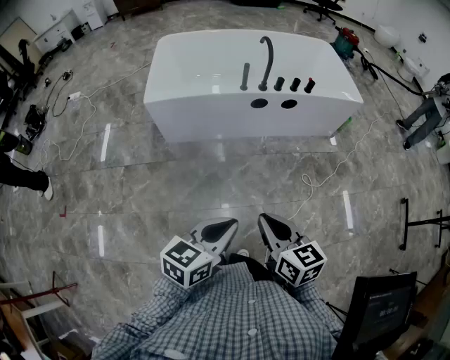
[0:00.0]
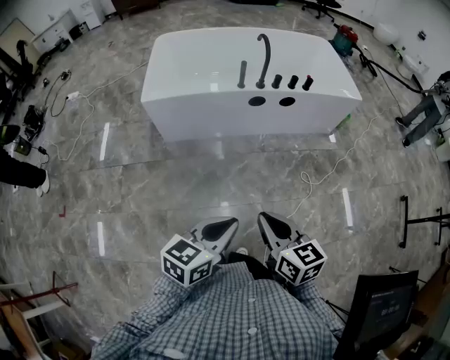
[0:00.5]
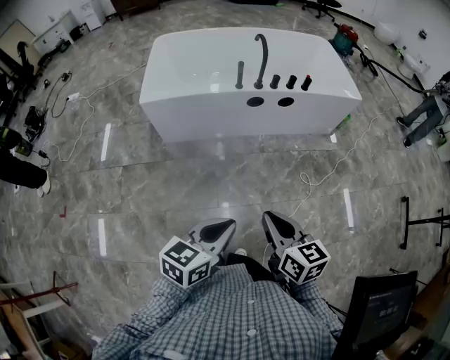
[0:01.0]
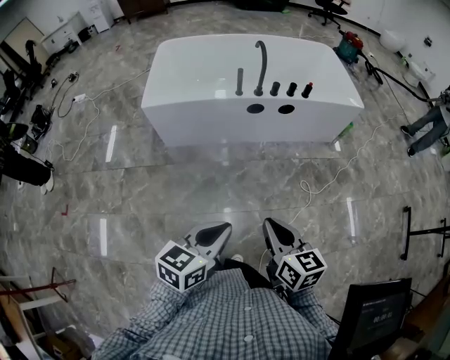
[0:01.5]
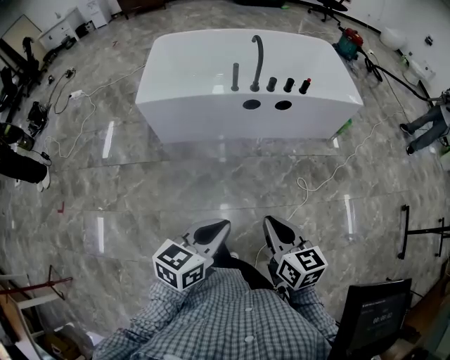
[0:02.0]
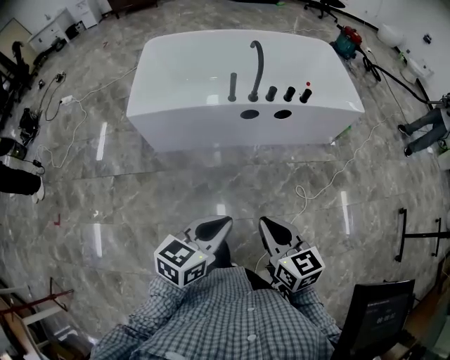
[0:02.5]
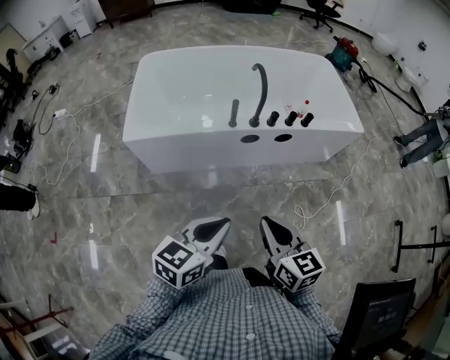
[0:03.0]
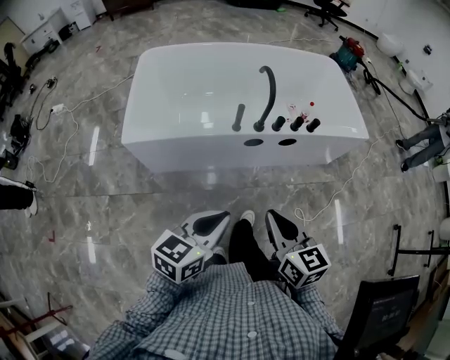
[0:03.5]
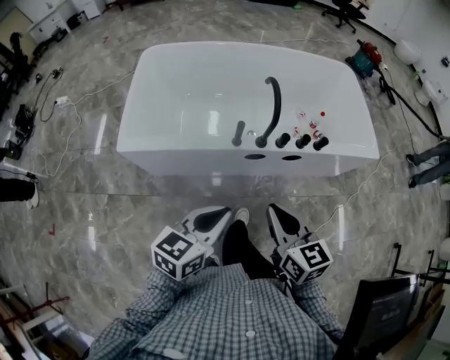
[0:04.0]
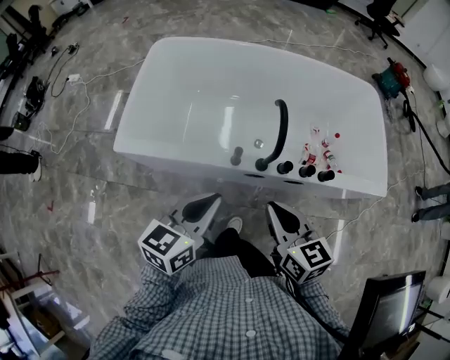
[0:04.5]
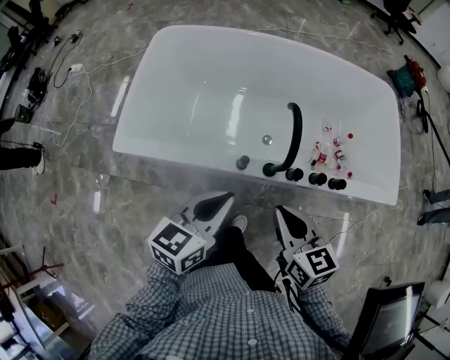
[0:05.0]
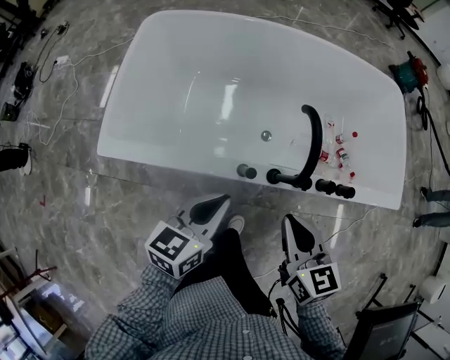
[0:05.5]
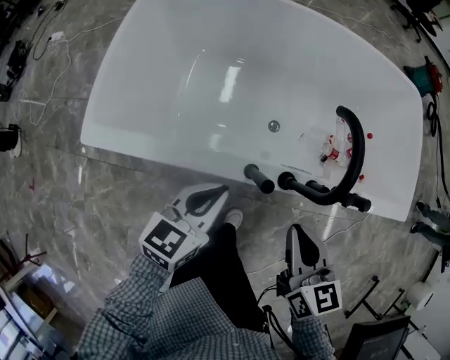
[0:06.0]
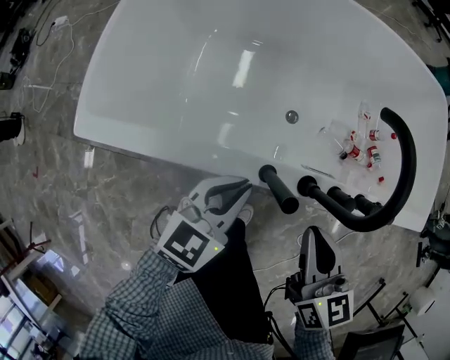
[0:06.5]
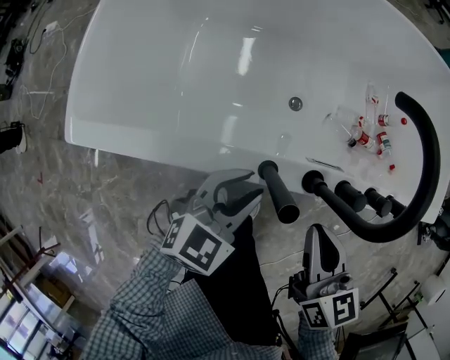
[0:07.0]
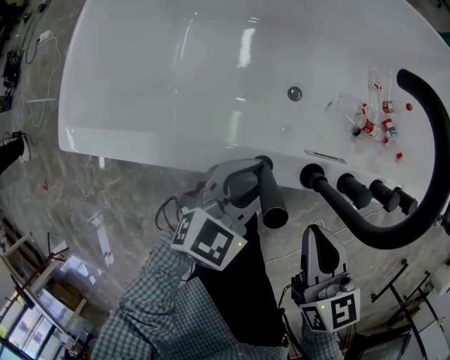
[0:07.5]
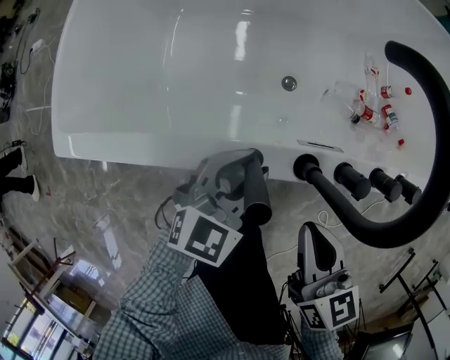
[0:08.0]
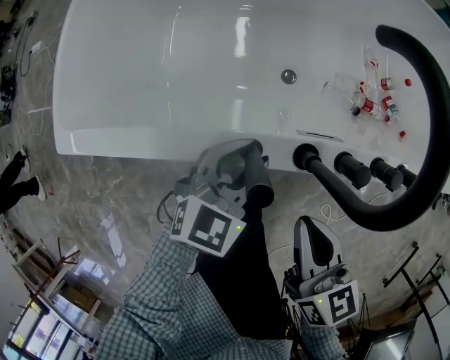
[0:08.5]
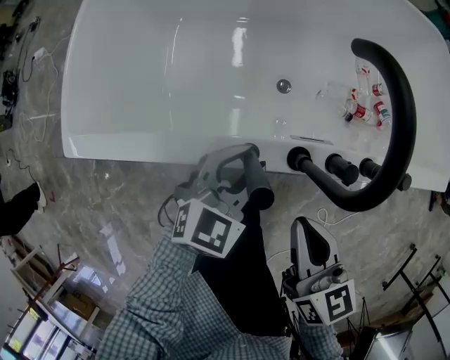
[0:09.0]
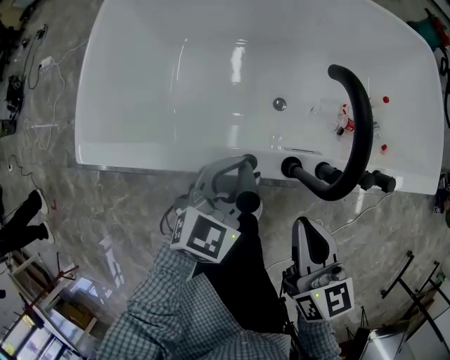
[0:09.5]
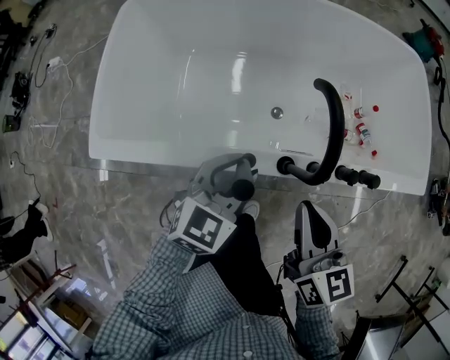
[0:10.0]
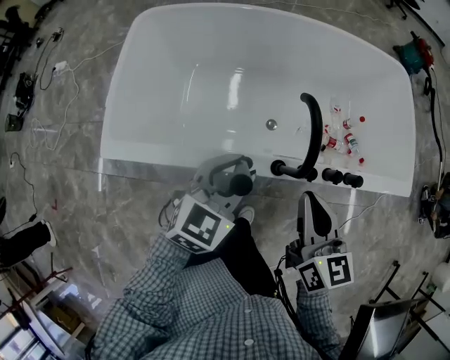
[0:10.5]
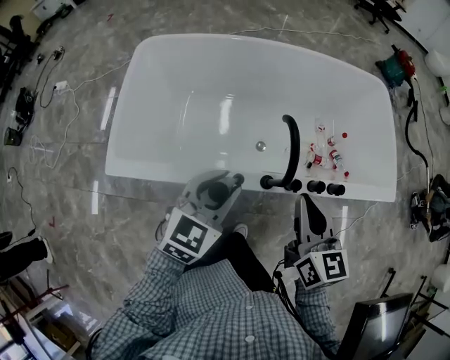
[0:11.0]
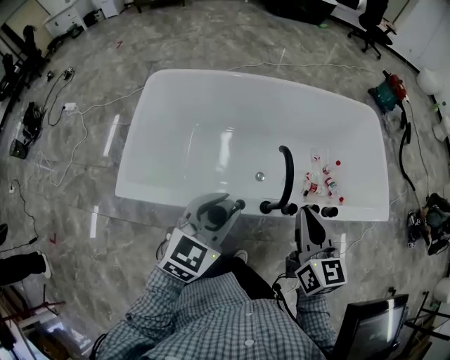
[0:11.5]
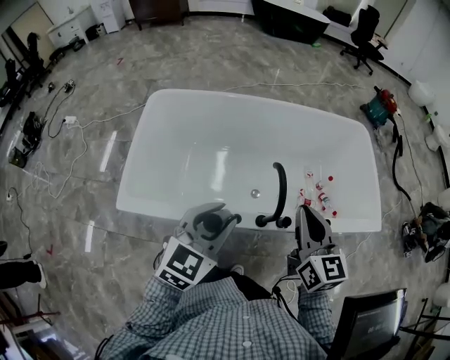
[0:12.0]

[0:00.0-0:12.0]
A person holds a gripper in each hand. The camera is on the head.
0:00.0 to 0:02.0: The left gripper moves to the right, approximately 5 cm; the right gripper is displaced to the right by roughly 10 cm.
0:02.0 to 0:04.0: The two grippers travel together, forward, about 50 cm.
0:04.0 to 0:06.0: Both grippers move forward and downward, some 35 cm.
0:06.0 to 0:08.0: The left gripper moves downward and to the right, some 15 cm, rotates some 30 degrees, and opens; the right gripper moves downward, about 15 cm.
0:08.0 to 0:10.0: Both grippers move upward, roughly 15 cm.
0:10.0 to 0:12.0: Both grippers move upward, about 25 cm.

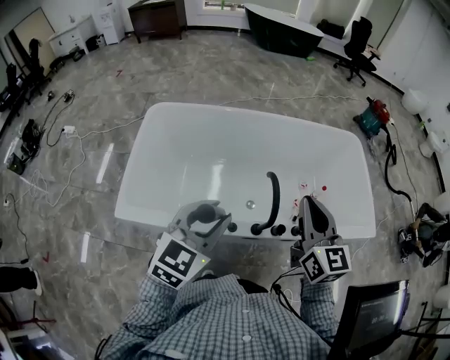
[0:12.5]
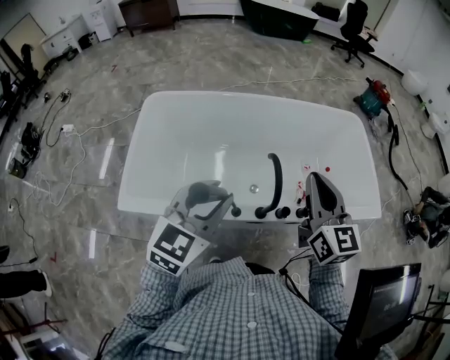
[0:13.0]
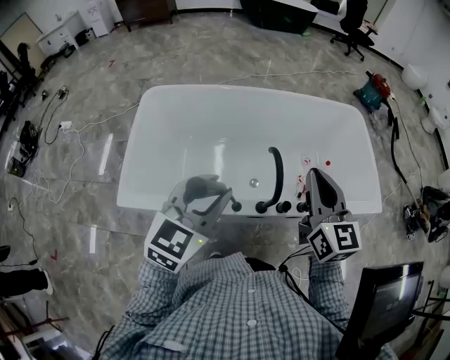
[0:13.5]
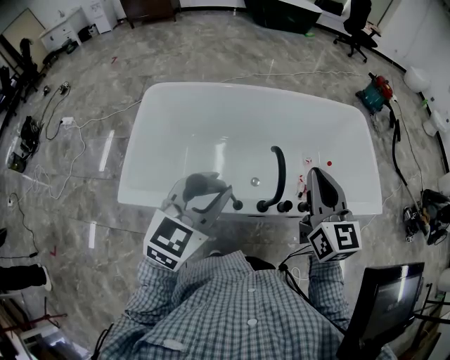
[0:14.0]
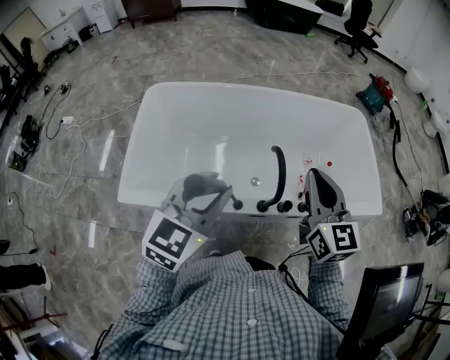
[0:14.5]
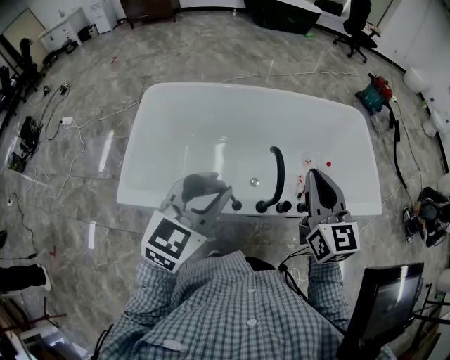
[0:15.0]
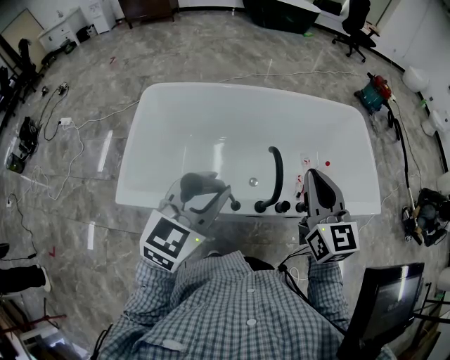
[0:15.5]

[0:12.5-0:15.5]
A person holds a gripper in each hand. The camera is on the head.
0:12.5 to 0:14.0: There are only small adjustments of the grippers.
0:14.0 to 0:15.5: Neither gripper changes place.

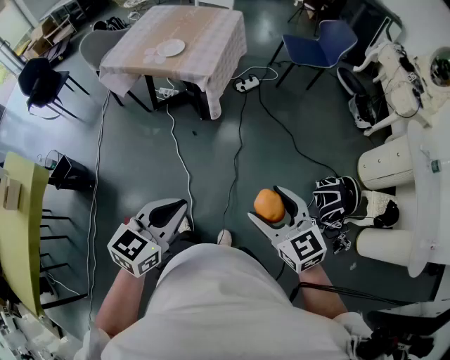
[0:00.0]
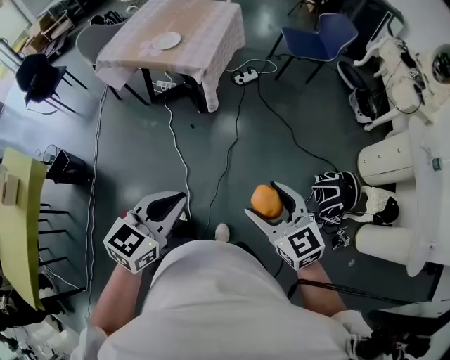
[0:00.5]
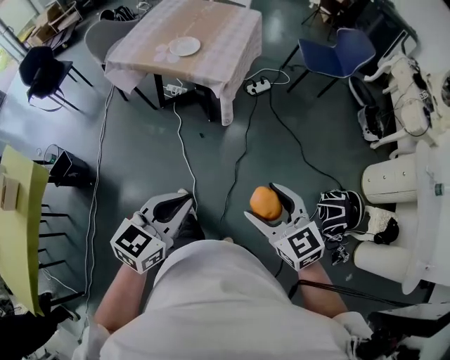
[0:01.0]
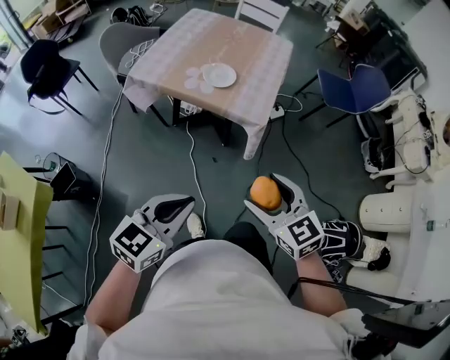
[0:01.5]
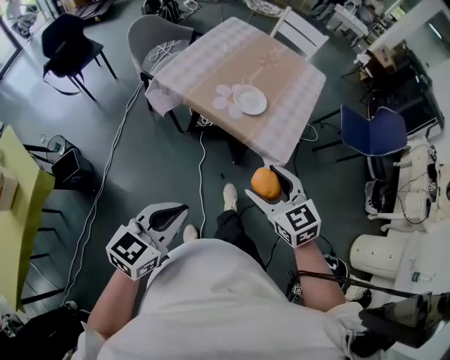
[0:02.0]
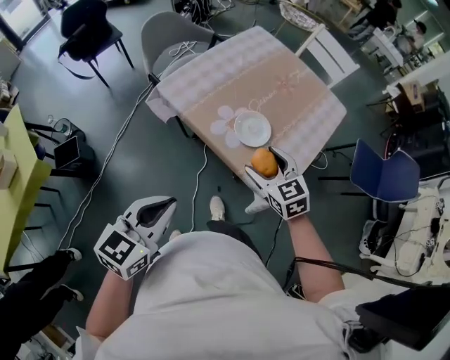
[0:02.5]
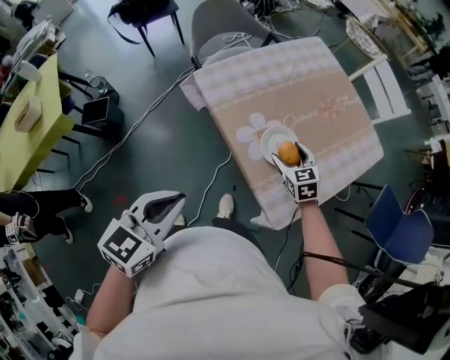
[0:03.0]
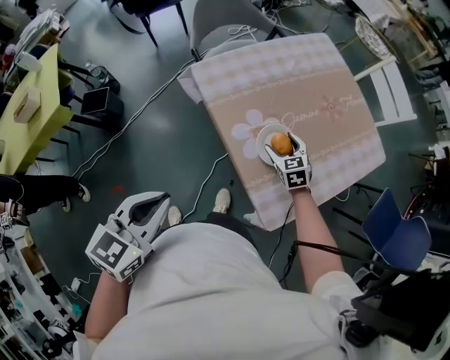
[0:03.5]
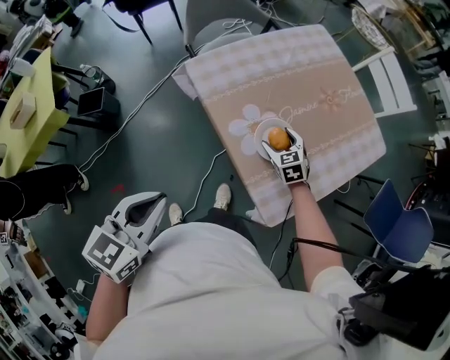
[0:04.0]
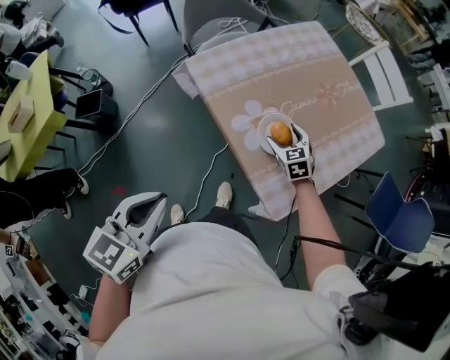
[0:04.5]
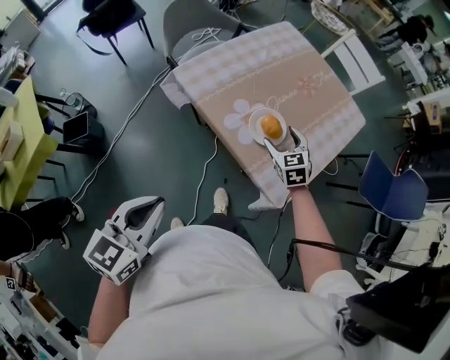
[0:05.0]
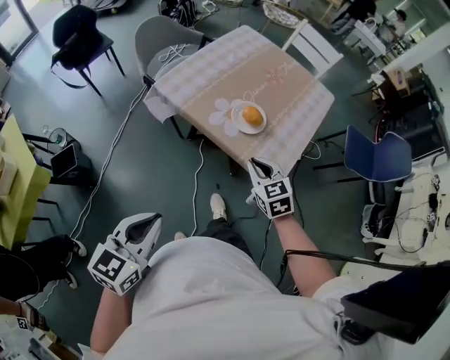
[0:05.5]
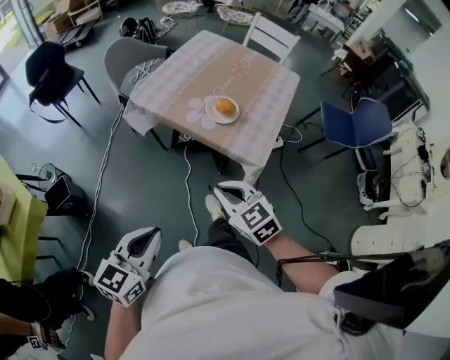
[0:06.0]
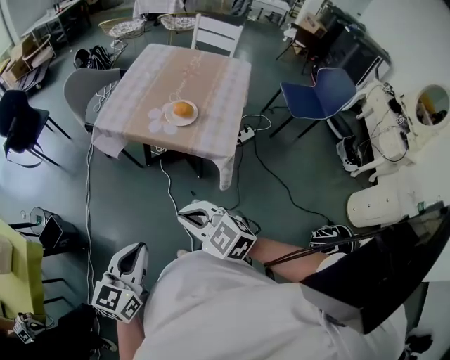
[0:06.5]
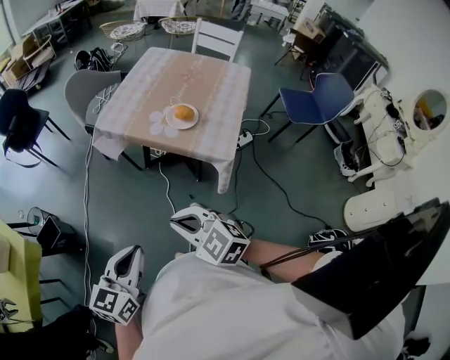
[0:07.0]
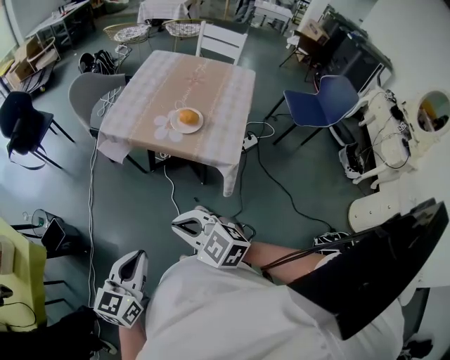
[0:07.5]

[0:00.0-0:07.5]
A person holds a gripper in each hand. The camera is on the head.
0:00.0 to 0:02.0: Both grippers are carried forward and to the left, approximately 50 cm.
0:02.0 to 0:04.0: The left gripper moves some 20 cm, and rotates approximately 40 degrees, while the right gripper changes place by some 50 cm, and changes its angle by some 20 degrees.
0:04.0 to 0:05.5: The right gripper moves backward and upward, roughly 25 cm, swivels roughly 20 degrees, and closes, while the left gripper heads backward and to the left, covering about 15 cm, and turns by about 20 degrees.
0:05.5 to 0:07.5: The right gripper is displaced backward and to the left by roughly 30 cm, and swivels approximately 20 degrees. The left gripper heads backward, covering approximately 10 cm.

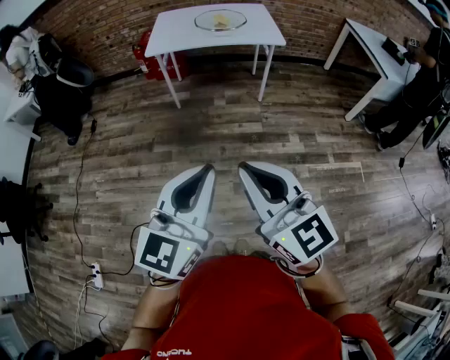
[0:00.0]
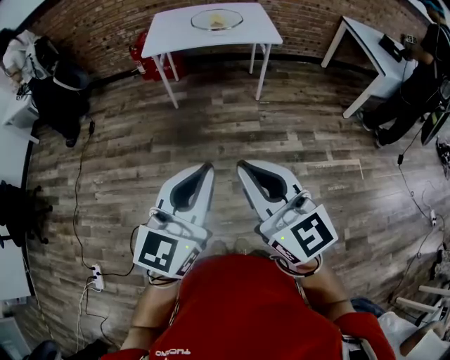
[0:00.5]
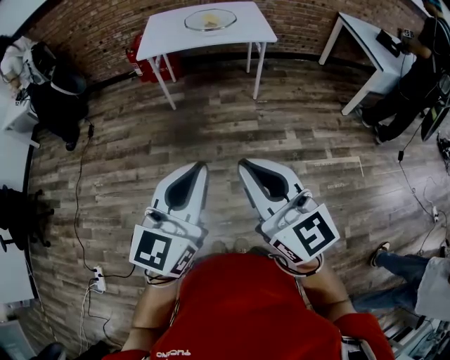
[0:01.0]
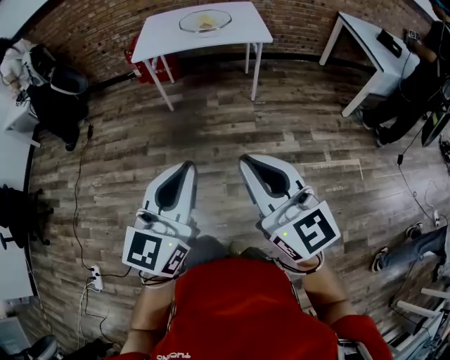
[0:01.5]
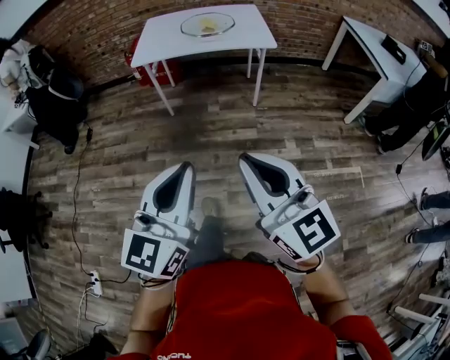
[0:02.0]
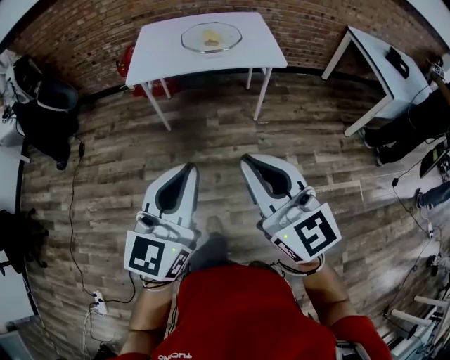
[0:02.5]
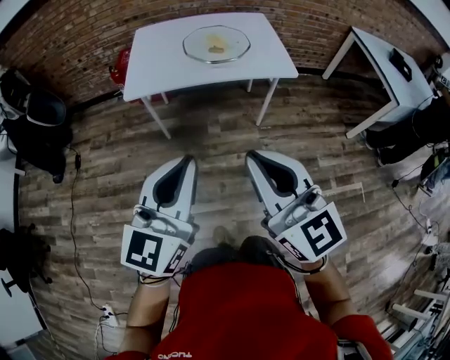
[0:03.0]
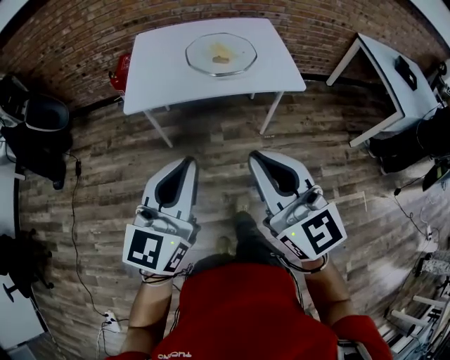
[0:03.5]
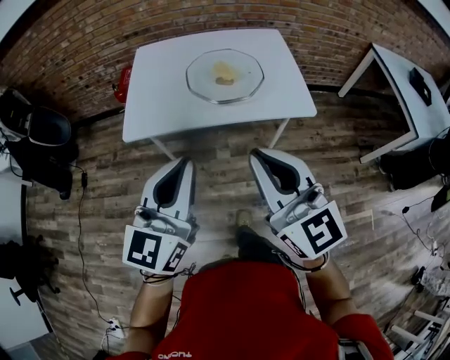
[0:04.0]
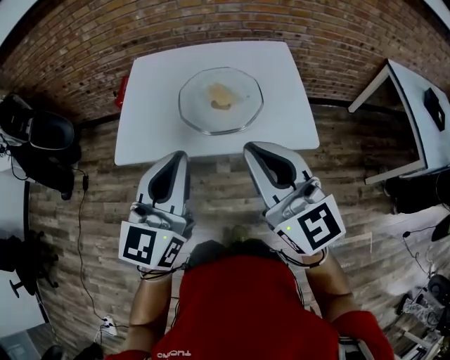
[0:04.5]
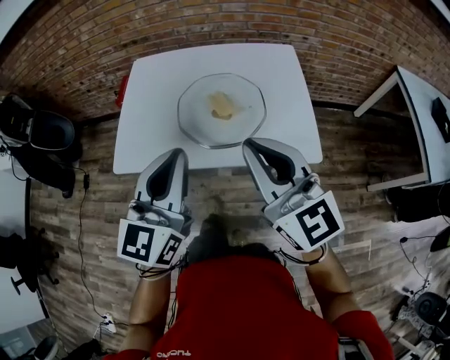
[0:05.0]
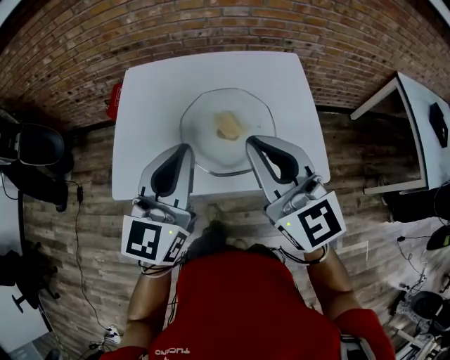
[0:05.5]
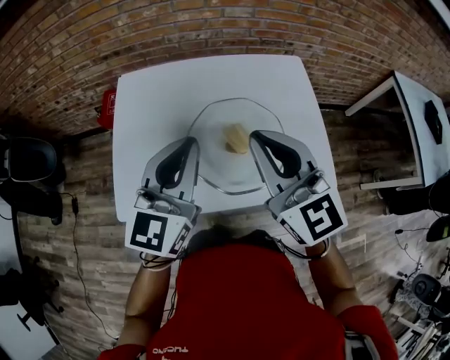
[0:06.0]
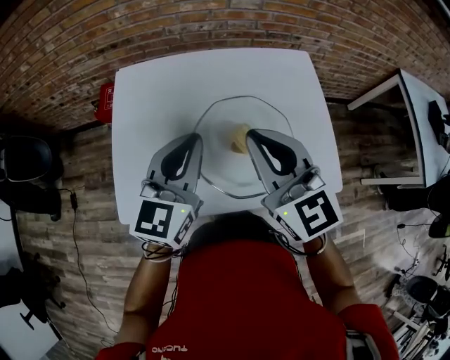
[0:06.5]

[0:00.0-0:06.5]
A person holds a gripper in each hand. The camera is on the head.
0:00.0 to 0:02.0: The left gripper shifts roughly 5 cm forward. Meanwhile the right gripper goes roughly 10 cm to the right and forward.
0:02.0 to 0:04.5: Both grippers are carried forward, some 70 cm.
0:04.5 to 0:06.5: Both grippers travel together forward, roughly 30 cm.
